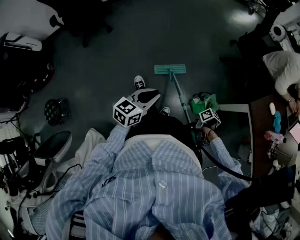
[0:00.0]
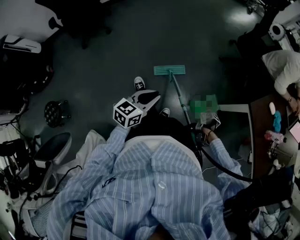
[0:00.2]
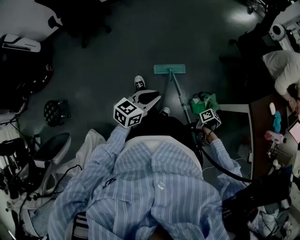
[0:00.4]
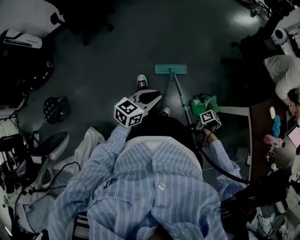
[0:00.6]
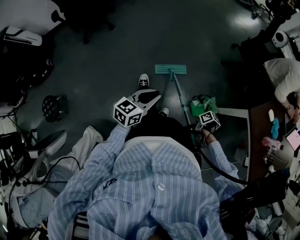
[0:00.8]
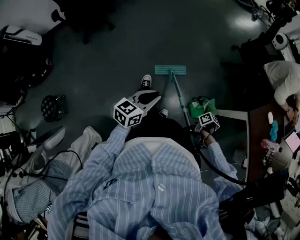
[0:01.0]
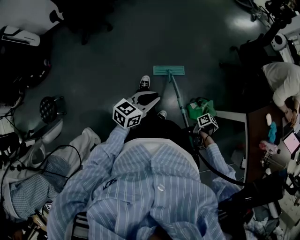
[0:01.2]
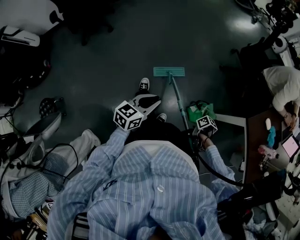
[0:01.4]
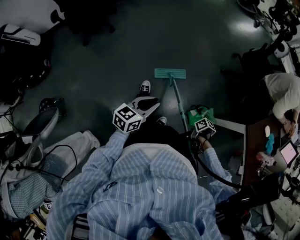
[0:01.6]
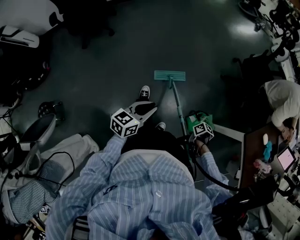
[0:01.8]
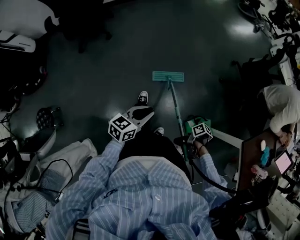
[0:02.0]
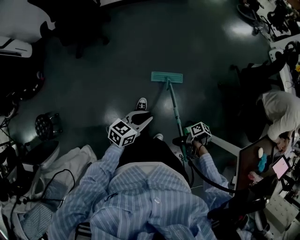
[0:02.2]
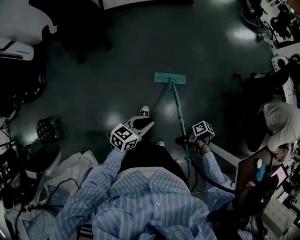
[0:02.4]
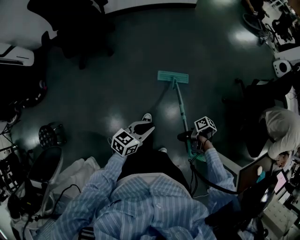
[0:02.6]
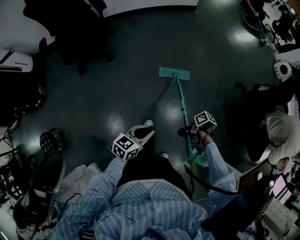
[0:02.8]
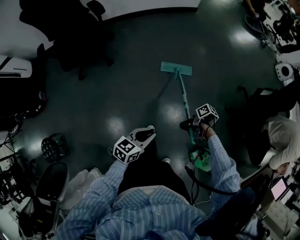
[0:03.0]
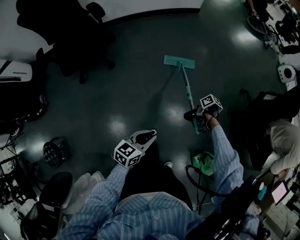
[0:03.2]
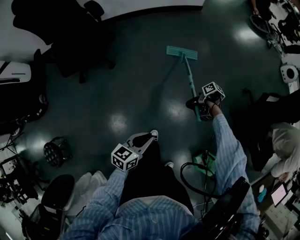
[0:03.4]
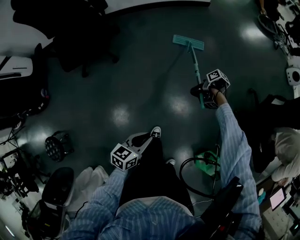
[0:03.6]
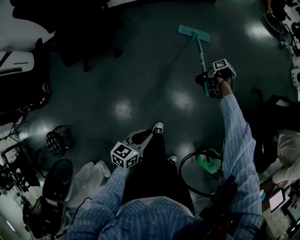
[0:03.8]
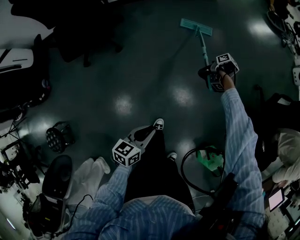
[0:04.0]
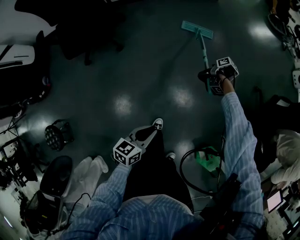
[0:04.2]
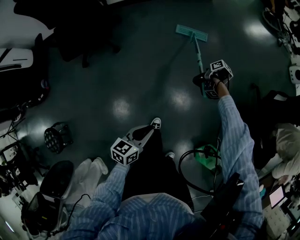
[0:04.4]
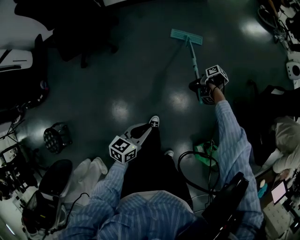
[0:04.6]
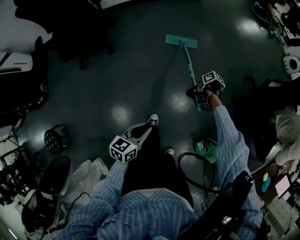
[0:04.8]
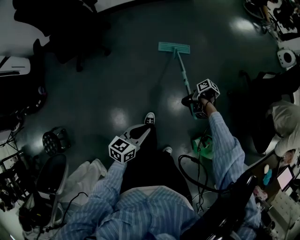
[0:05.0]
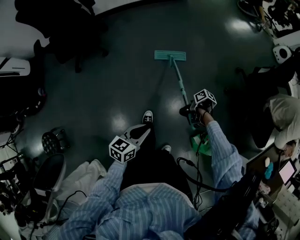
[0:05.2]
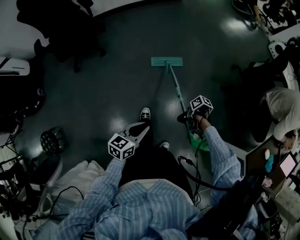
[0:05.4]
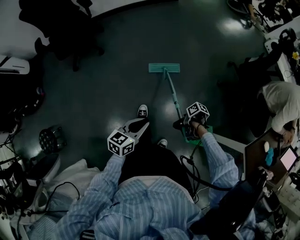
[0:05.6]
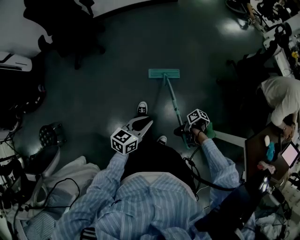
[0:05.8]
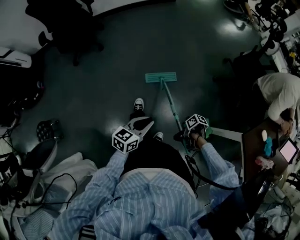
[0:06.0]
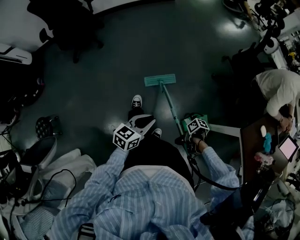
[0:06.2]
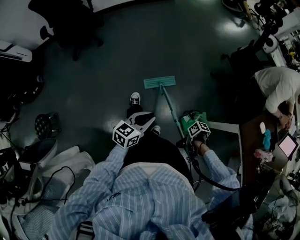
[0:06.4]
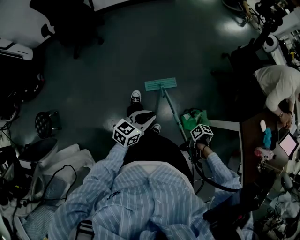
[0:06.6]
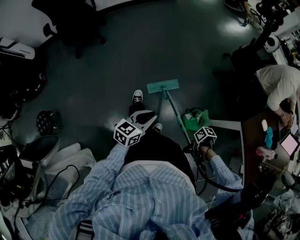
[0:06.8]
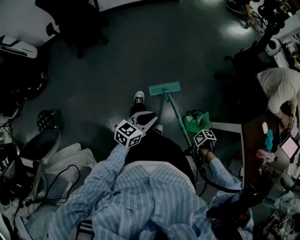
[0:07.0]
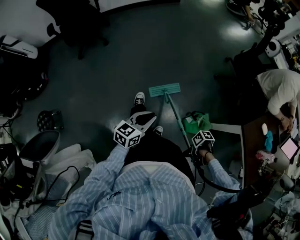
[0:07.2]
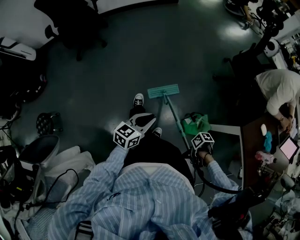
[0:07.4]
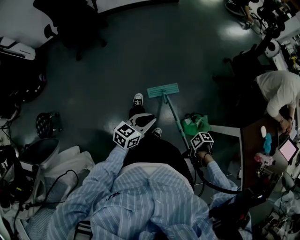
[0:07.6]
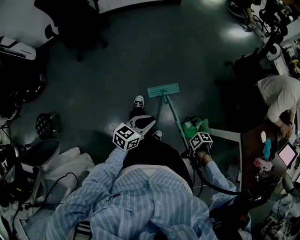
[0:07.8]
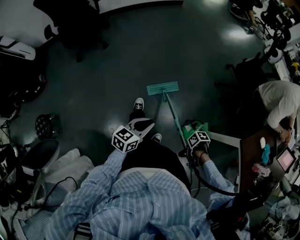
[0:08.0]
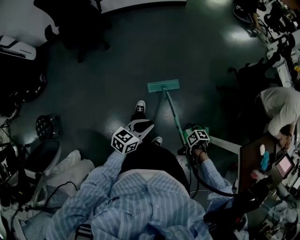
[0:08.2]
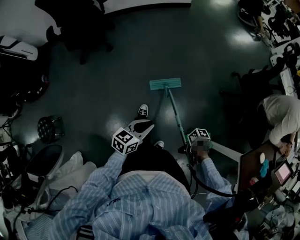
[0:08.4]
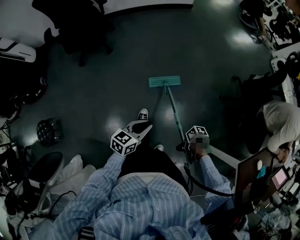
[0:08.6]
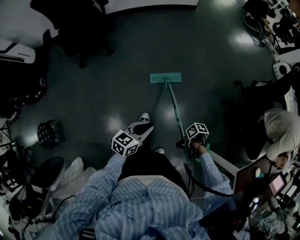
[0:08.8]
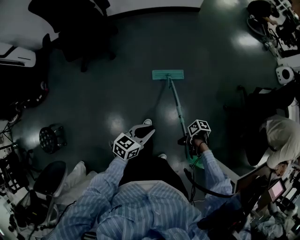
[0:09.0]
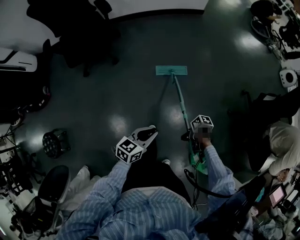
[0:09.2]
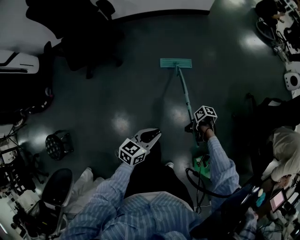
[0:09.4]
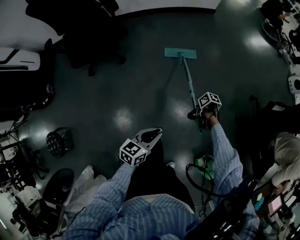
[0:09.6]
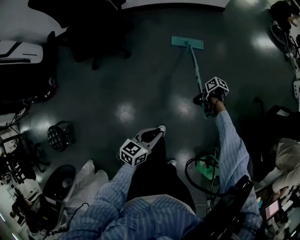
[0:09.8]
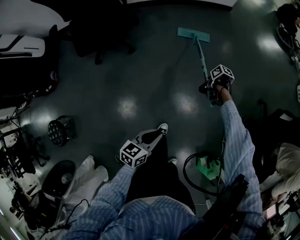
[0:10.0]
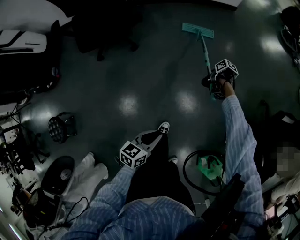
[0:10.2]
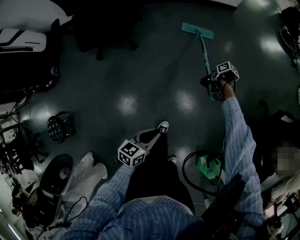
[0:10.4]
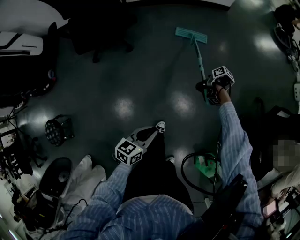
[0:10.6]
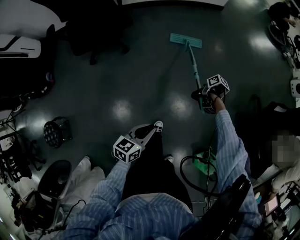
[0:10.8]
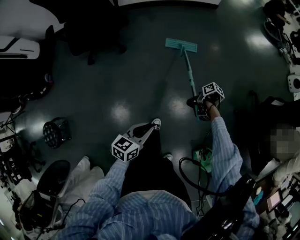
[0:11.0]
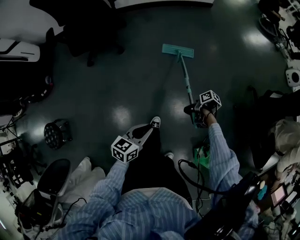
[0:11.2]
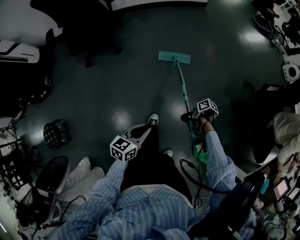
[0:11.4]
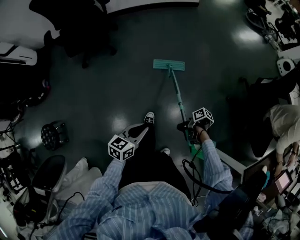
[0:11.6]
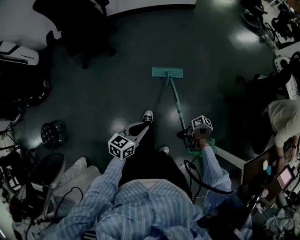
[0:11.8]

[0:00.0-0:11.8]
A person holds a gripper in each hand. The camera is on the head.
0:00.0 to 0:01.4: The left gripper shifts by some 5 cm.
0:01.4 to 0:03.0: The left gripper changes place by roughly 40 cm.
0:03.0 to 0:04.4: The left gripper ends up approximately 10 cm from where it was.
0:04.4 to 0:06.0: The left gripper ends up about 40 cm from where it was.
0:06.0 to 0:07.4: The left gripper ends up some 5 cm from where it was.
0:07.4 to 0:08.8: The left gripper moves roughly 30 cm.
0:08.8 to 0:10.4: The left gripper ends up roughly 20 cm from where it was.
0:10.4 to 0:11.8: The left gripper changes place by some 25 cm.

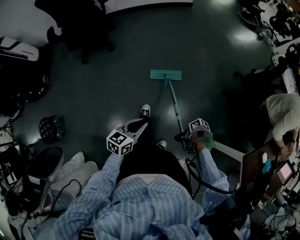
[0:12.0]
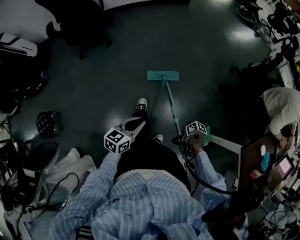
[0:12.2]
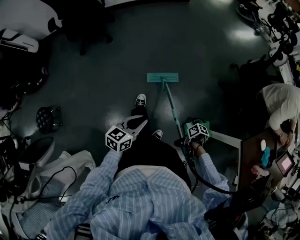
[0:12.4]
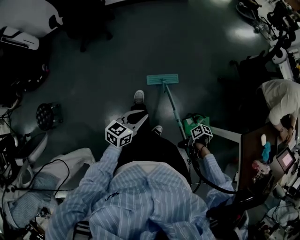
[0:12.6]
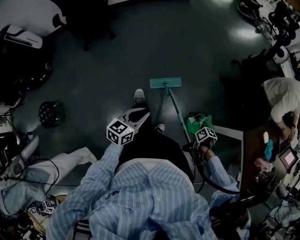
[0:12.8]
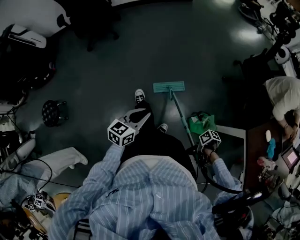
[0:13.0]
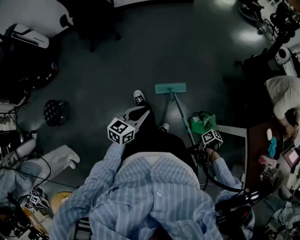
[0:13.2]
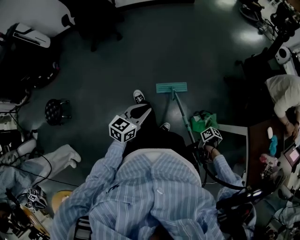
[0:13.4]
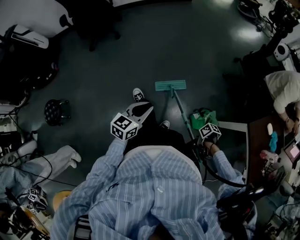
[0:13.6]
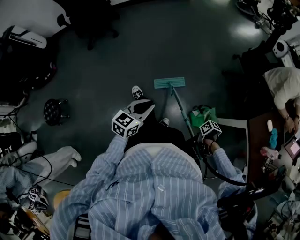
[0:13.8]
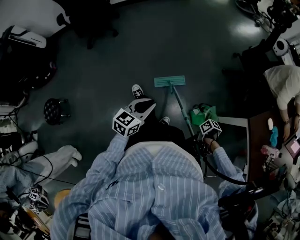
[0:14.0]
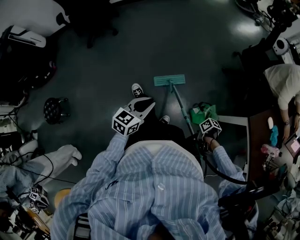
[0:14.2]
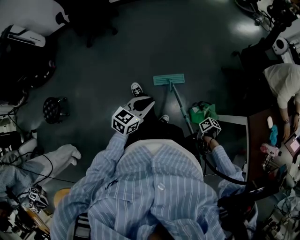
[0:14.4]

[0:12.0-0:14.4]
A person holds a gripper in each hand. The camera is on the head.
0:12.0 to 0:13.2: The left gripper changes place by some 20 cm.

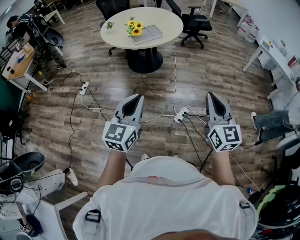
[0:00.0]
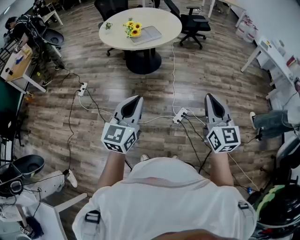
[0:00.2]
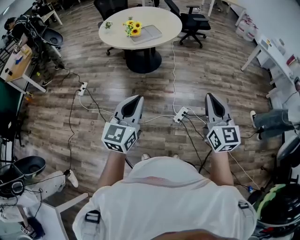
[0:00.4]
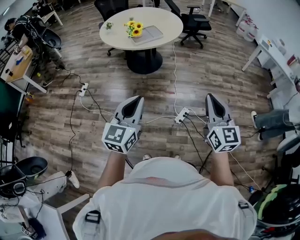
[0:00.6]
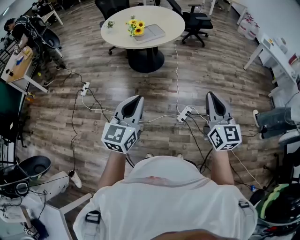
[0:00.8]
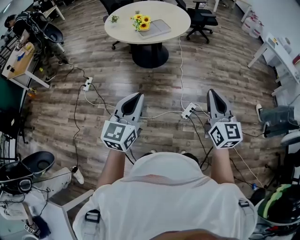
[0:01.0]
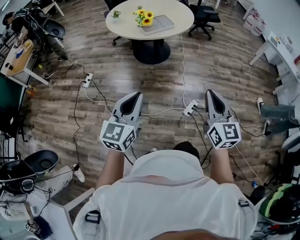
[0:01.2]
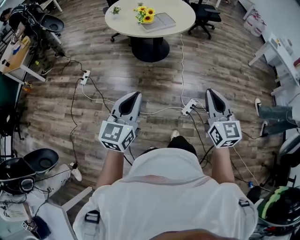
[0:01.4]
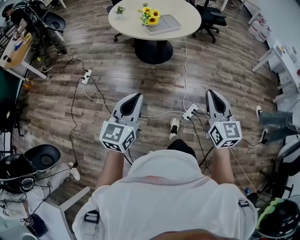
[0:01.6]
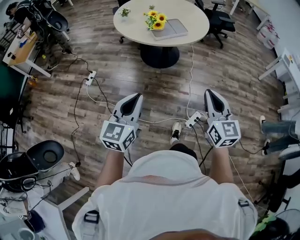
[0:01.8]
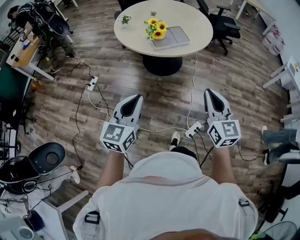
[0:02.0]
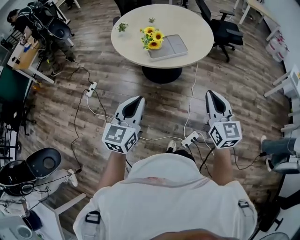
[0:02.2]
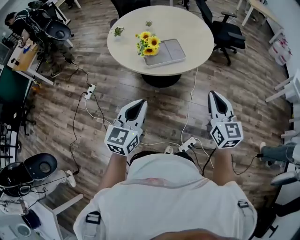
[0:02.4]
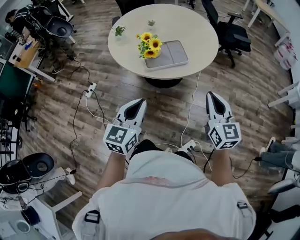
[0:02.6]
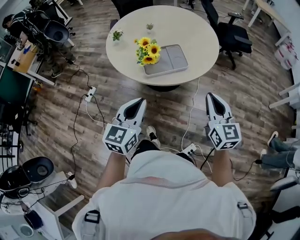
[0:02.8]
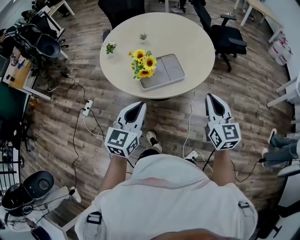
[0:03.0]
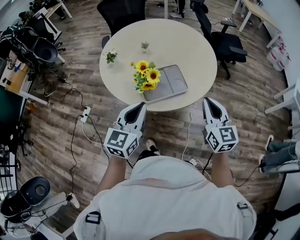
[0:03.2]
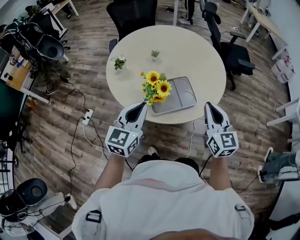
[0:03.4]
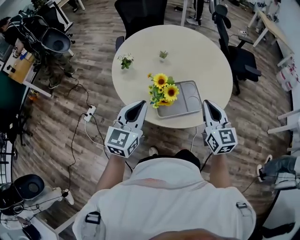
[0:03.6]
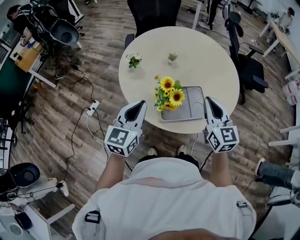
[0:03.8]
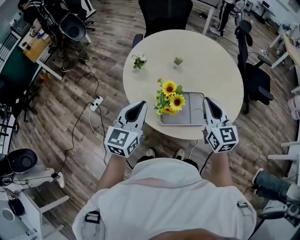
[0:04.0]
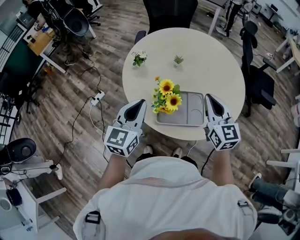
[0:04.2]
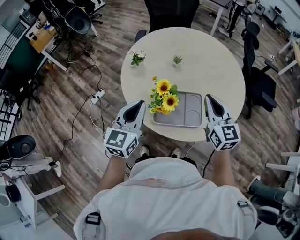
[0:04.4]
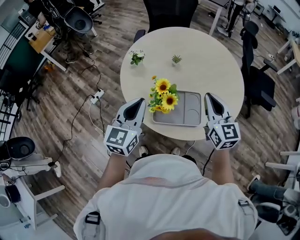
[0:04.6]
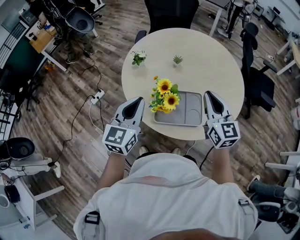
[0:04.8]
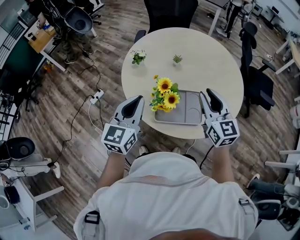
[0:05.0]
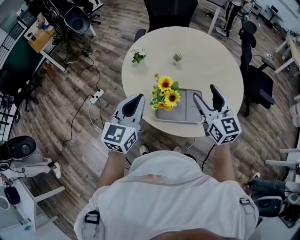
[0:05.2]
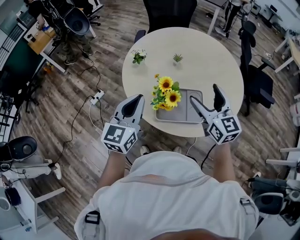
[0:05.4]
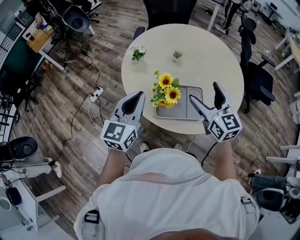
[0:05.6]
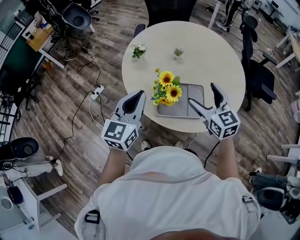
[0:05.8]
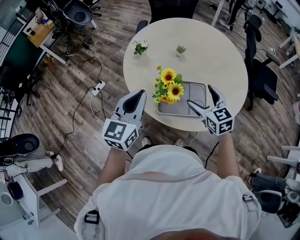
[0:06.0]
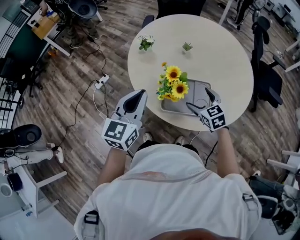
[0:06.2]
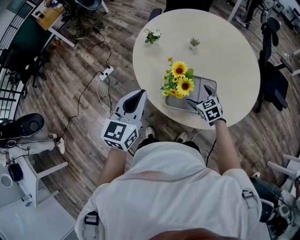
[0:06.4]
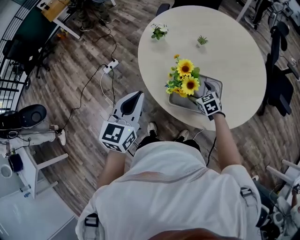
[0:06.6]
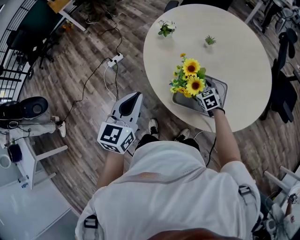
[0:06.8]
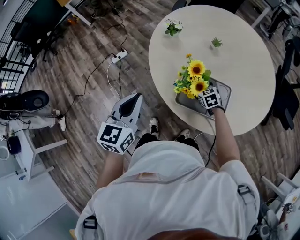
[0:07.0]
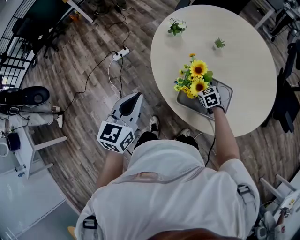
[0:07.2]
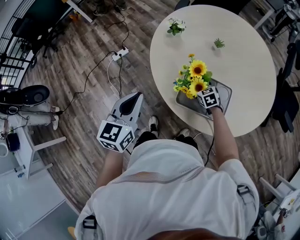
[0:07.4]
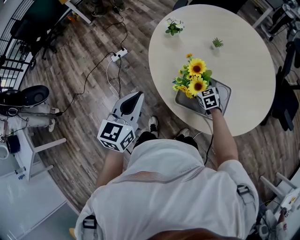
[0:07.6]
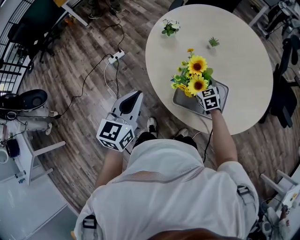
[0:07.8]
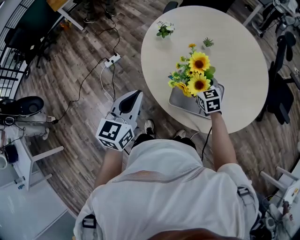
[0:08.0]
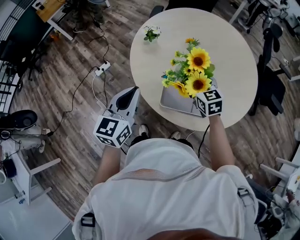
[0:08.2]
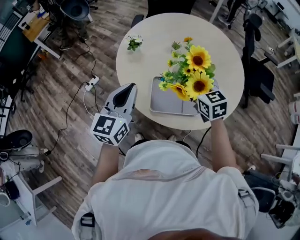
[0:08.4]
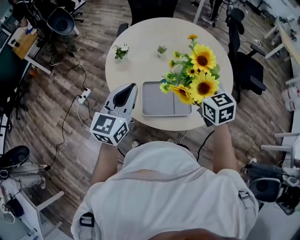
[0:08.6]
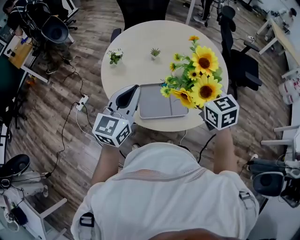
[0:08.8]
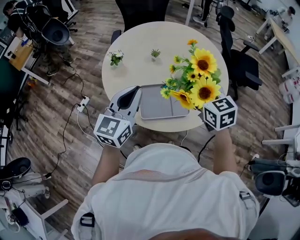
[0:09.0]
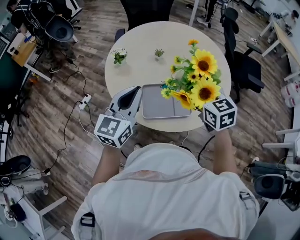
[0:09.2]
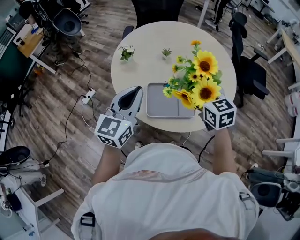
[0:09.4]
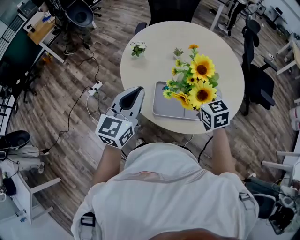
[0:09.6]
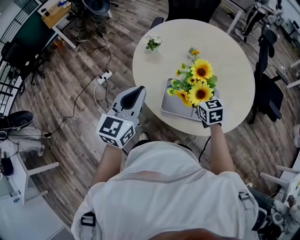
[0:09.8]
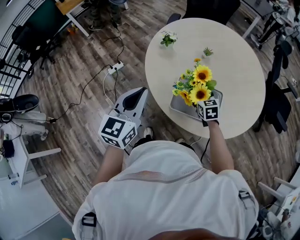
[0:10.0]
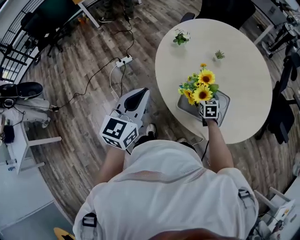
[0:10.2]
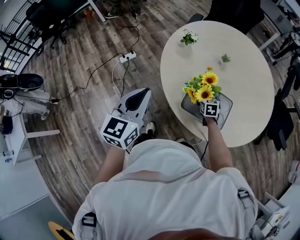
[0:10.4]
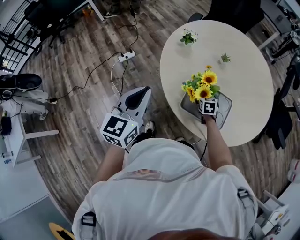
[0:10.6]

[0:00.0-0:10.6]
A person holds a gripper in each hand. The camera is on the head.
0:00.0 to 0:01.6: The right gripper heads to the left, forward and downward, covering about 20 cm, while the left gripper shifts approximately 20 cm to the left and forward.
0:01.6 to 0:03.0: The two grippers travel together, forward, about 60 cm.
0:03.0 to 0:04.6: The grippers both shift forward by roughly 30 cm. The right gripper rotates roughly 20 degrees. The left gripper turns by some 20 degrees.
0:04.6 to 0:06.0: The right gripper shifts roughly 10 cm downward and to the left, rotates about 20 degrees, and opens.
0:06.0 to 0:07.6: The right gripper travels downward and forward by about 25 cm, and rotates about 20 degrees. Meanwhile the left gripper shifts roughly 10 cm to the left and downward, and turns by about 20 degrees.
0:07.6 to 0:09.0: The left gripper ends up roughly 20 cm from where it was, and changes its angle by some 30 degrees. The right gripper shifts some 30 cm upward, and changes its angle by about 30 degrees.
0:09.0 to 0:10.6: The left gripper is displaced to the left by about 20 cm, and changes its angle by about 30 degrees. The right gripper moves downward, approximately 35 cm, and rotates about 20 degrees.
